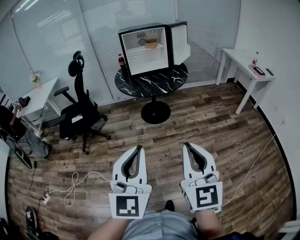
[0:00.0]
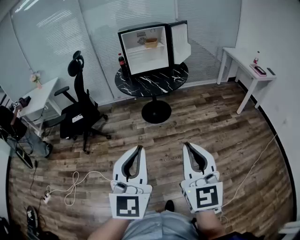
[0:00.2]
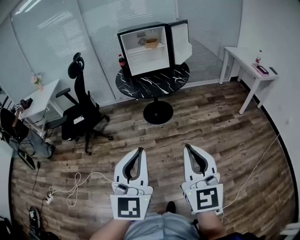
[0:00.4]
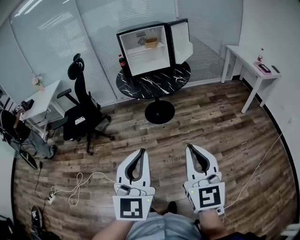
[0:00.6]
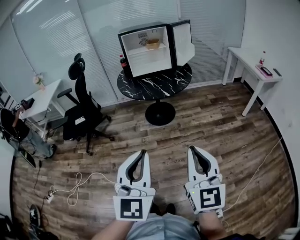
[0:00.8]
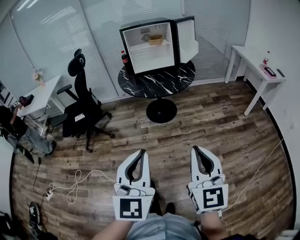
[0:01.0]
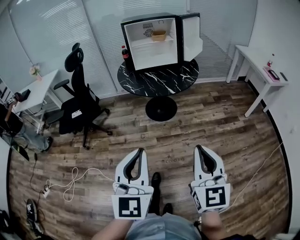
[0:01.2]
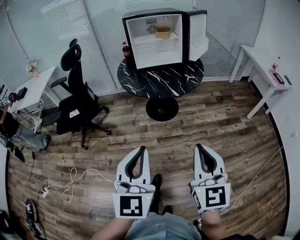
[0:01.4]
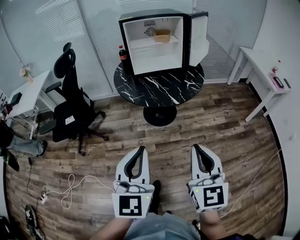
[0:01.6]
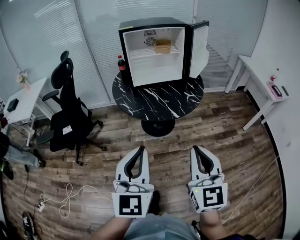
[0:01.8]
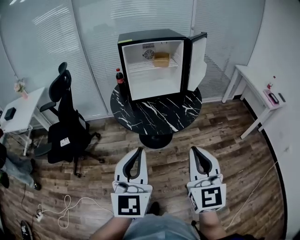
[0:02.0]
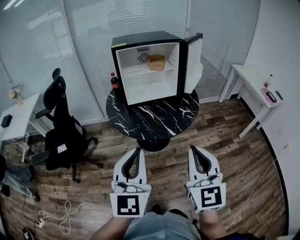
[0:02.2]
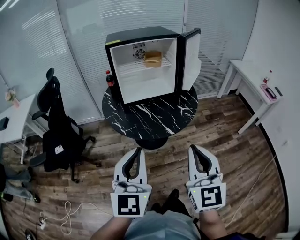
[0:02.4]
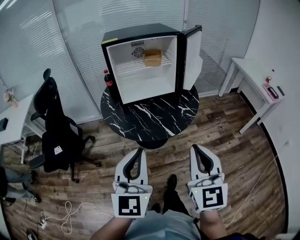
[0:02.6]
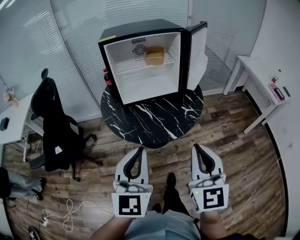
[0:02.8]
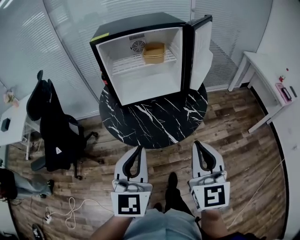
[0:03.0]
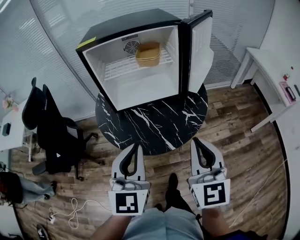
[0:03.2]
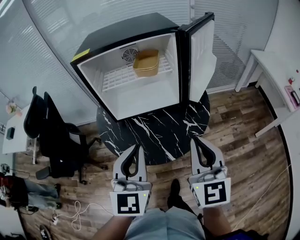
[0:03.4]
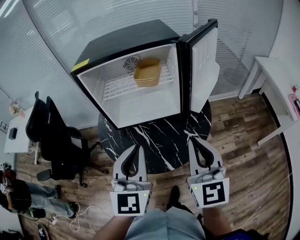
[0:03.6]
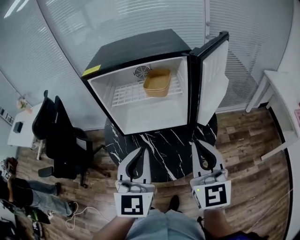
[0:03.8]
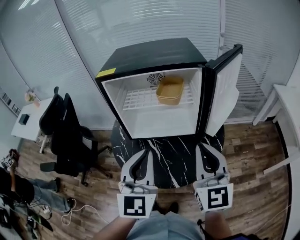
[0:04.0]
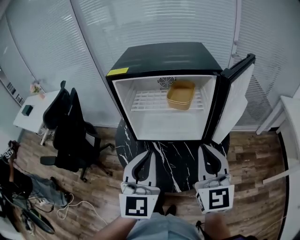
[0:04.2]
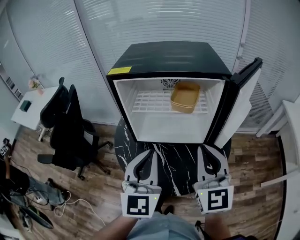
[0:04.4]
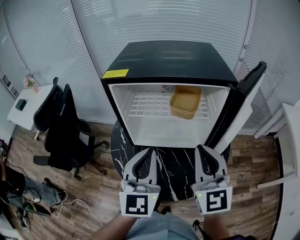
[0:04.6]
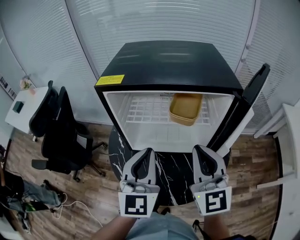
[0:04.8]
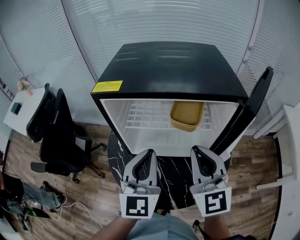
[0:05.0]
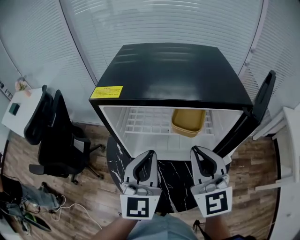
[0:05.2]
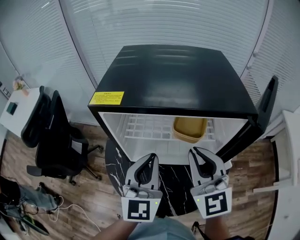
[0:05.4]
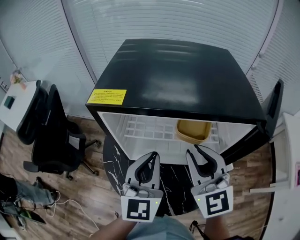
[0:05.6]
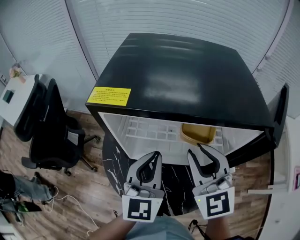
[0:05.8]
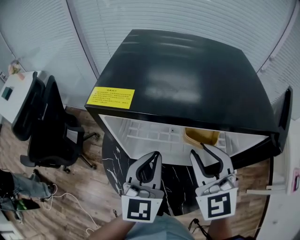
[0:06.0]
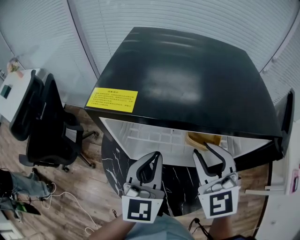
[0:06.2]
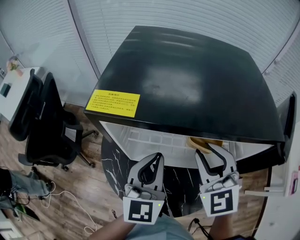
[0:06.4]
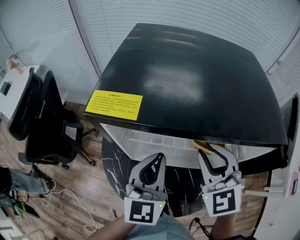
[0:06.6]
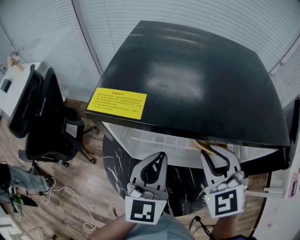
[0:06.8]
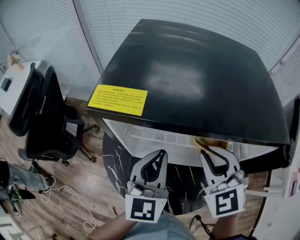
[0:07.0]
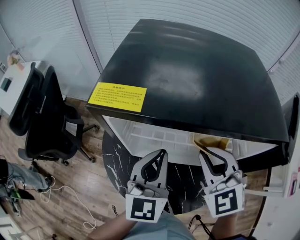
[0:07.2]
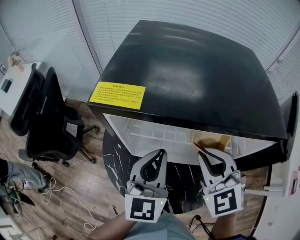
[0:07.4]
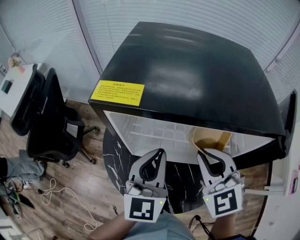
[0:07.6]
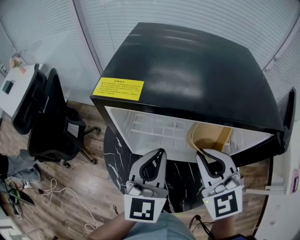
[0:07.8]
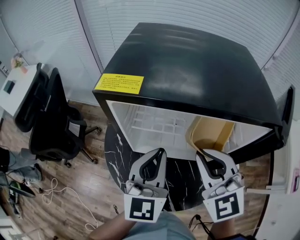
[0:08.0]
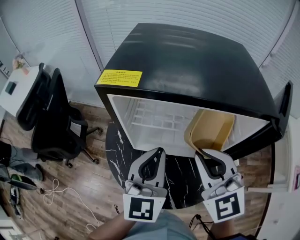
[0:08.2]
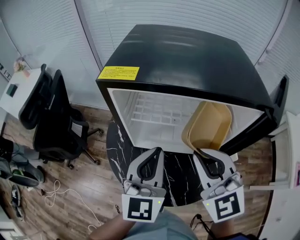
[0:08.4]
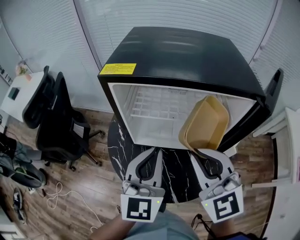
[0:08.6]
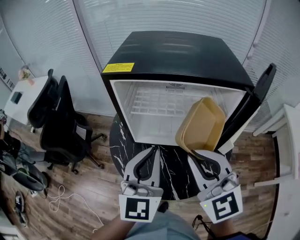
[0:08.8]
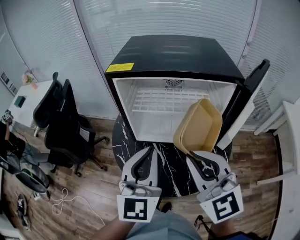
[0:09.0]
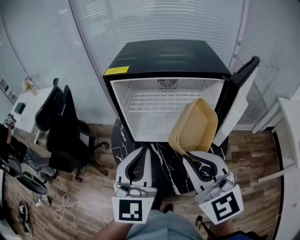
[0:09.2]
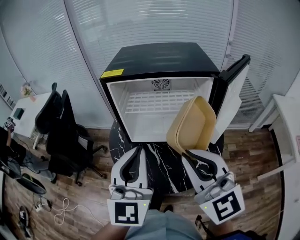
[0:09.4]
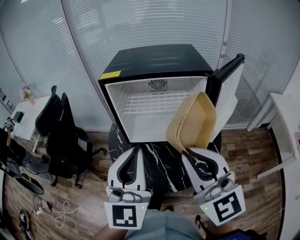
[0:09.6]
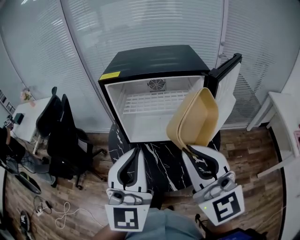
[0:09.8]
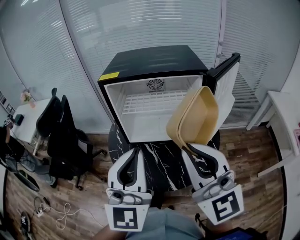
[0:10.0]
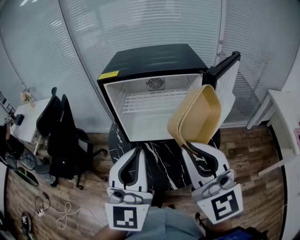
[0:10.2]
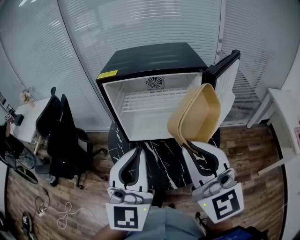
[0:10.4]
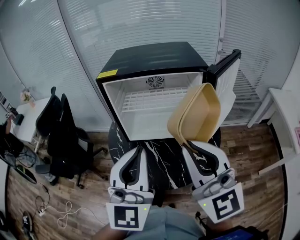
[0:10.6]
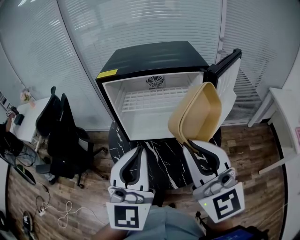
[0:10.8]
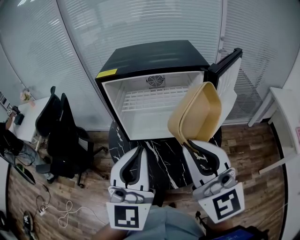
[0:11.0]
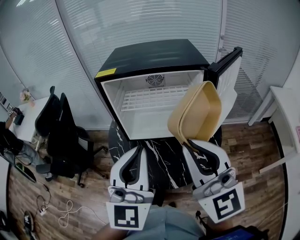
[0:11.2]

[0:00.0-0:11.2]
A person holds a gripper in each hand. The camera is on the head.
0:00.0 to 0:01.6: The grippers both shift forward by roughly 30 cm.
0:01.6 to 0:03.2: Both grippers move forward, about 35 cm.
0:03.2 to 0:04.8: Both grippers travel together forward, some 25 cm. The right gripper turns by approximately 20 degrees.
0:04.8 to 0:06.4: Both grippers move forward and downward, approximately 15 cm. The right gripper rotates some 30 degrees, and opens up.
0:06.4 to 0:08.0: The right gripper heads backward, covering approximately 5 cm, and closes its fingers.
0:08.0 to 0:09.6: Both grippers travel together backward and upward, some 25 cm. The right gripper swivels roughly 30 degrees.
0:09.6 to 0:11.2: The grippers move only a little.

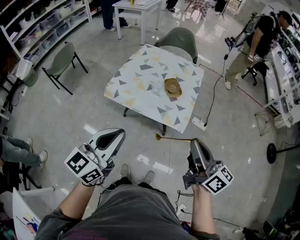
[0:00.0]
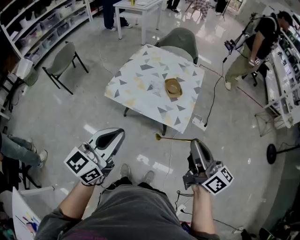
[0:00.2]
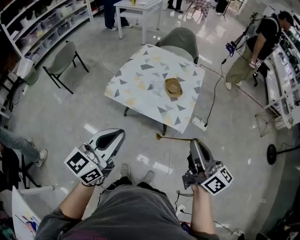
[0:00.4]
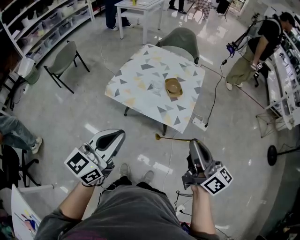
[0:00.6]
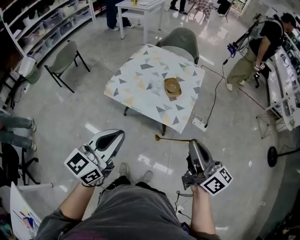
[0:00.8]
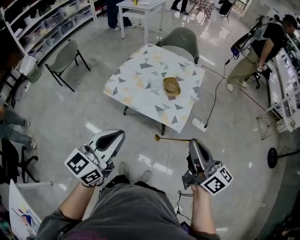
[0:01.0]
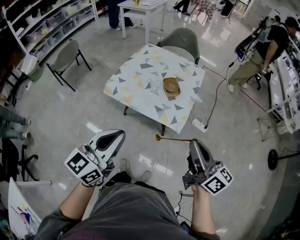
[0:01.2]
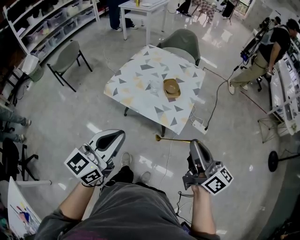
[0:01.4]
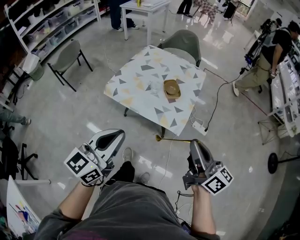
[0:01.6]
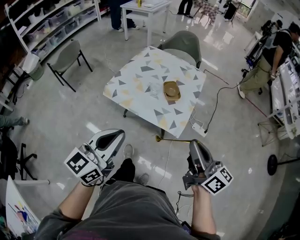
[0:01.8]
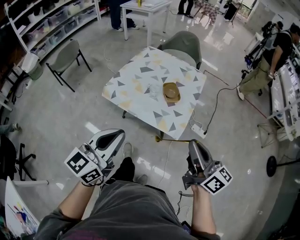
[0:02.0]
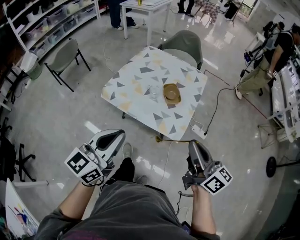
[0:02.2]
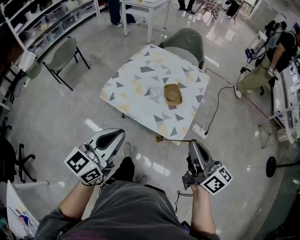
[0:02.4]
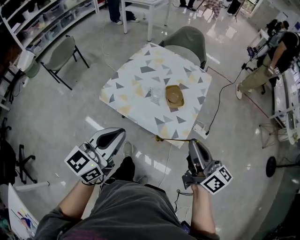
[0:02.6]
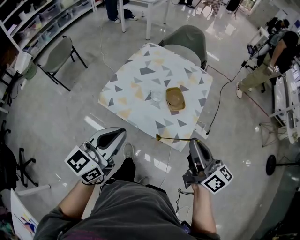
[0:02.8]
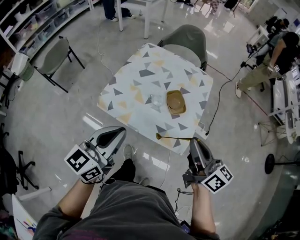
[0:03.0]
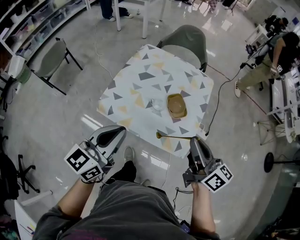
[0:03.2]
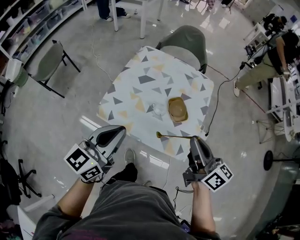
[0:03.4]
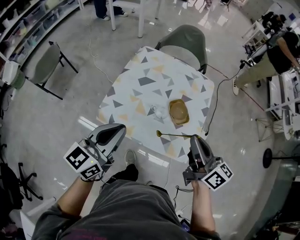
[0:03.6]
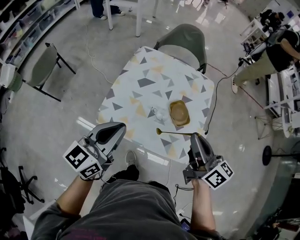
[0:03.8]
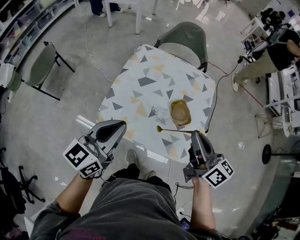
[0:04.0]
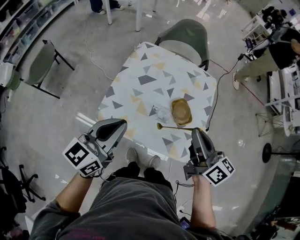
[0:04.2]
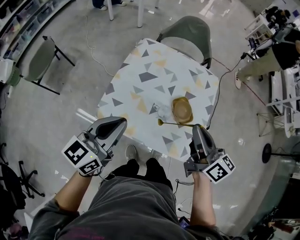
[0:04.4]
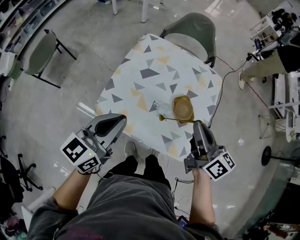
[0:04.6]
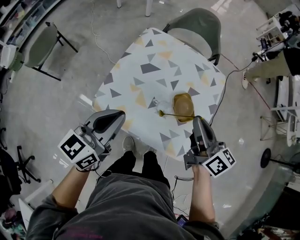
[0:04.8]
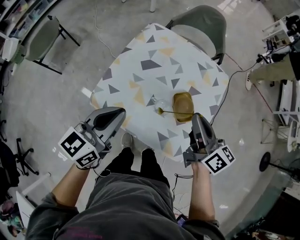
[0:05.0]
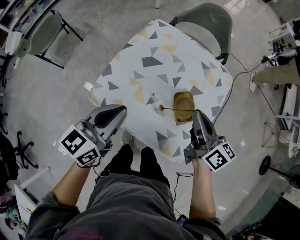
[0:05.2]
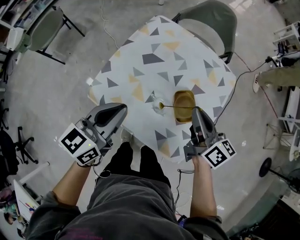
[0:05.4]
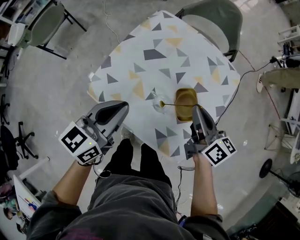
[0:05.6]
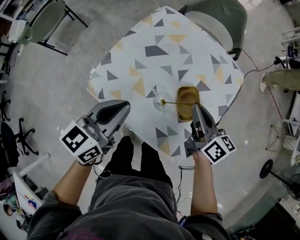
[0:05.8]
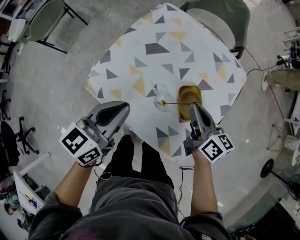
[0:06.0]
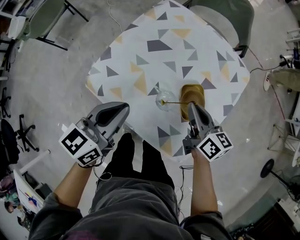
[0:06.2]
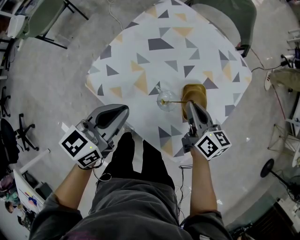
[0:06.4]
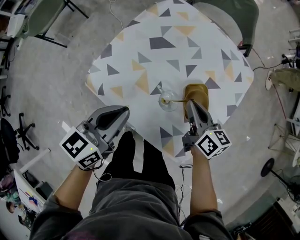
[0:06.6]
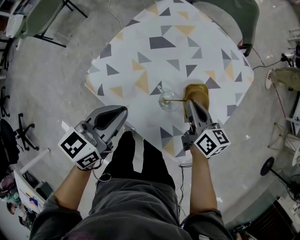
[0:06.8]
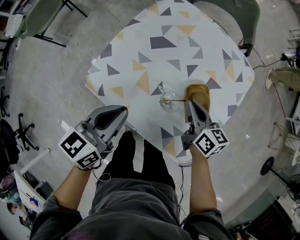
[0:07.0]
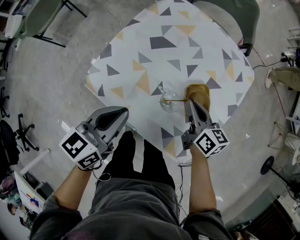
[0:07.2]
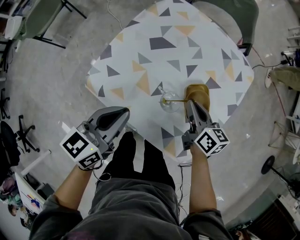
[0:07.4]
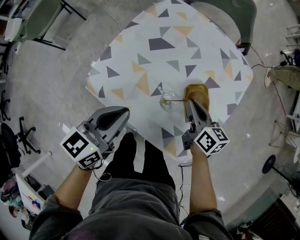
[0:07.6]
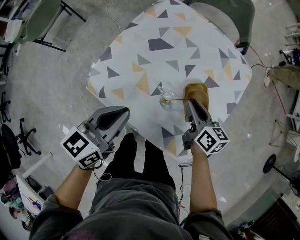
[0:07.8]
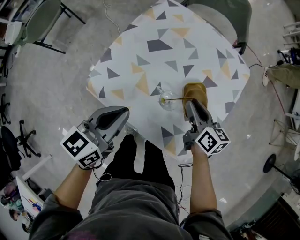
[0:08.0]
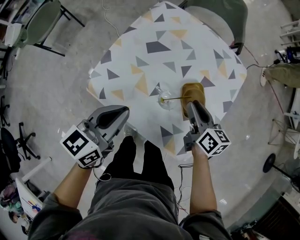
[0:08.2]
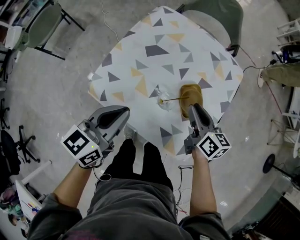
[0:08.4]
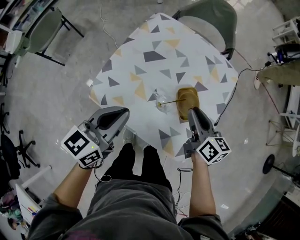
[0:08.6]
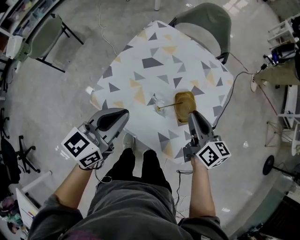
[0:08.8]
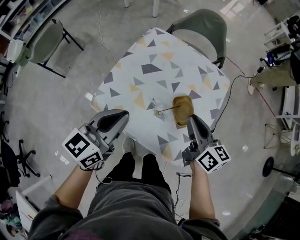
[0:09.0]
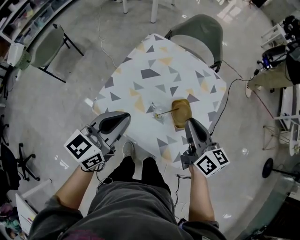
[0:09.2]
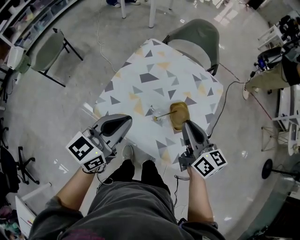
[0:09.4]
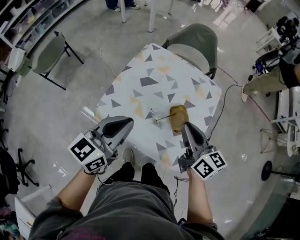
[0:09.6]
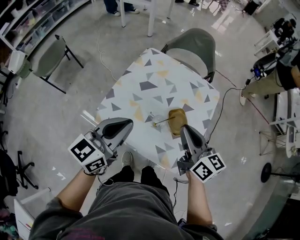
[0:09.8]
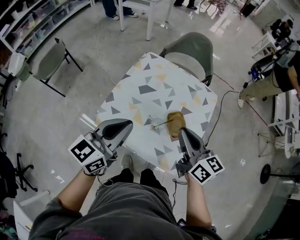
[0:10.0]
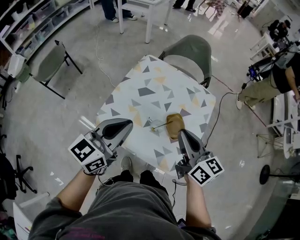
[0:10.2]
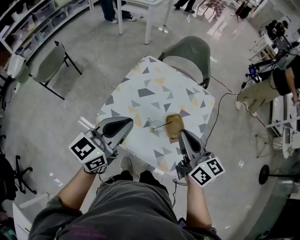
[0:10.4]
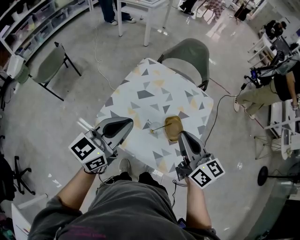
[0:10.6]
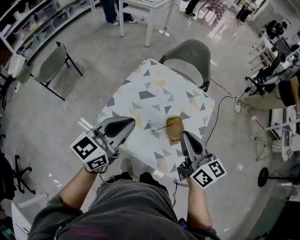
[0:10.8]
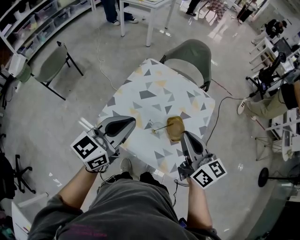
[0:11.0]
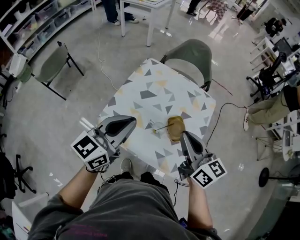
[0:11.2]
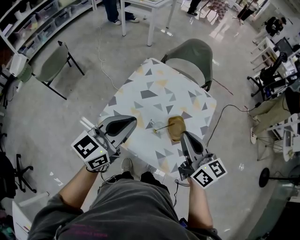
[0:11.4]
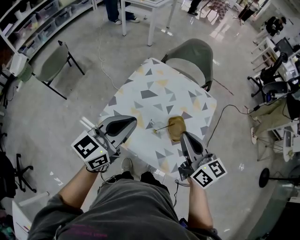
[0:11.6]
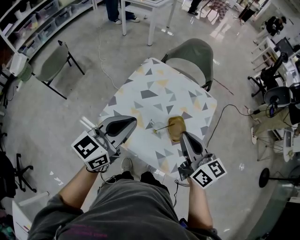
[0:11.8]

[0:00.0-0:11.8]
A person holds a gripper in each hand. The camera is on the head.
0:00.0 to 0:01.4: Both grippers move to the right, roughly 5 cm.
0:01.4 to 0:03.0: The two grippers go approximately 20 cm forward.
0:03.0 to 0:04.4: Both grippers move forward and to the left, about 20 cm.
0:04.4 to 0:06.0: The left gripper is displaced downward, to the right and forward by approximately 15 cm; the right gripper travels downward and forward by roughly 25 cm.
0:06.0 to 0:07.4: The right gripper goes roughly 10 cm downward; the left gripper moves approximately 5 cm.
0:07.4 to 0:08.8: Both grippers travel together upward, roughly 10 cm.
0:08.8 to 0:10.4: Both grippers travel together upward, some 15 cm.
0:10.4 to 0:11.8: The grippers move only a little.

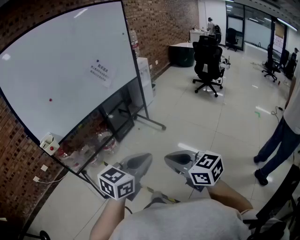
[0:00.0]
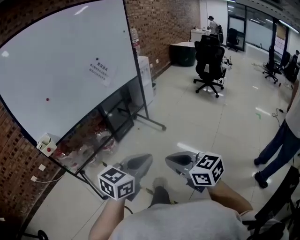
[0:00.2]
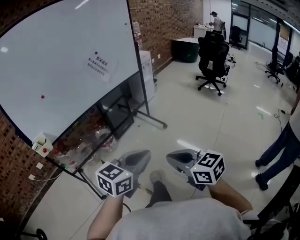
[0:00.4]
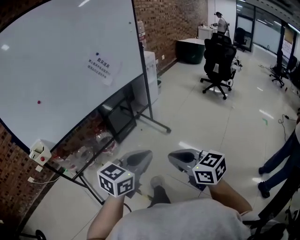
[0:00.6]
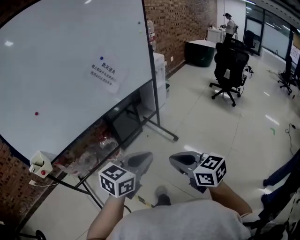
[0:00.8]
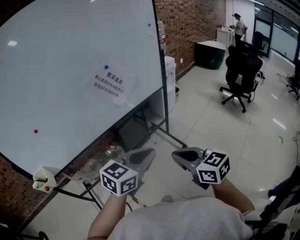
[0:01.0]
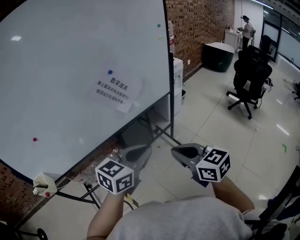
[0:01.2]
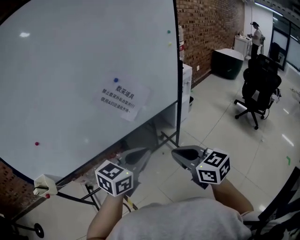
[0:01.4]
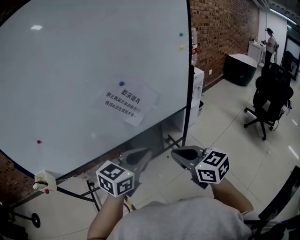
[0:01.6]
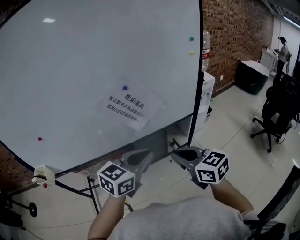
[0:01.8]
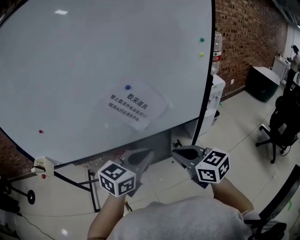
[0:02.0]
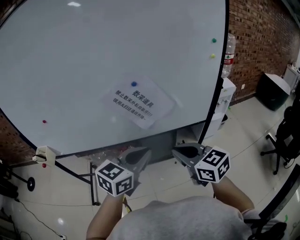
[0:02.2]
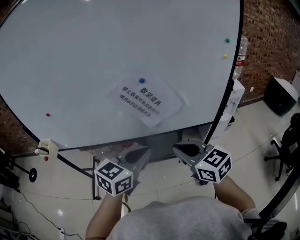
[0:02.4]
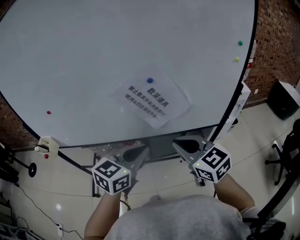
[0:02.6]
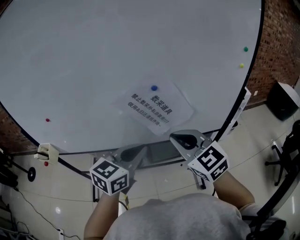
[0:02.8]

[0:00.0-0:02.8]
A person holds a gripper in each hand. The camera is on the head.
0:00.0 to 0:01.4: The two grippers travel together, forward, roughly 50 cm.
0:01.4 to 0:02.8: The left gripper changes place by some 15 cm, and swivels some 30 degrees, while the right gripper ends up some 20 cm from where it was, and changes its angle by approximately 40 degrees.
